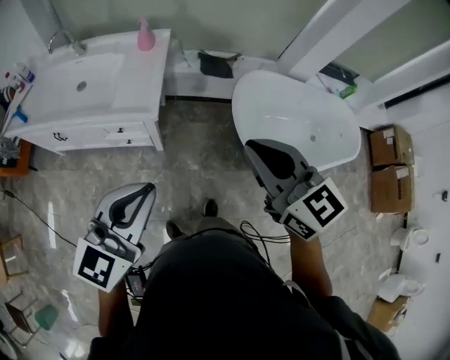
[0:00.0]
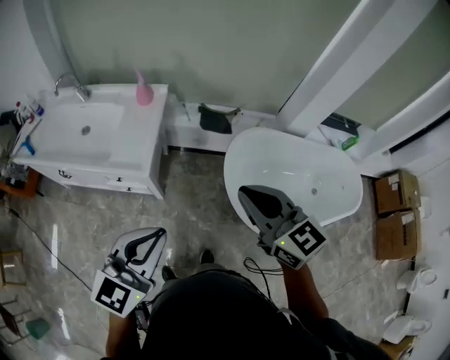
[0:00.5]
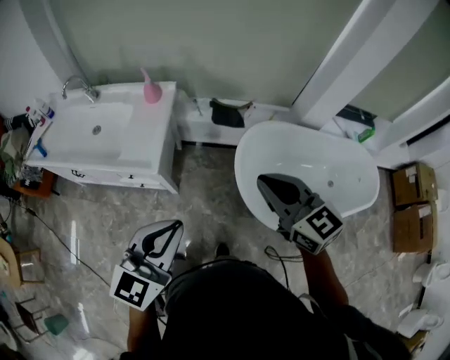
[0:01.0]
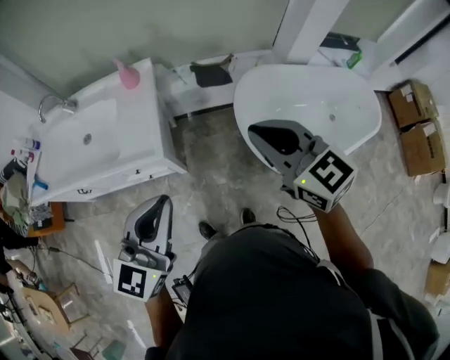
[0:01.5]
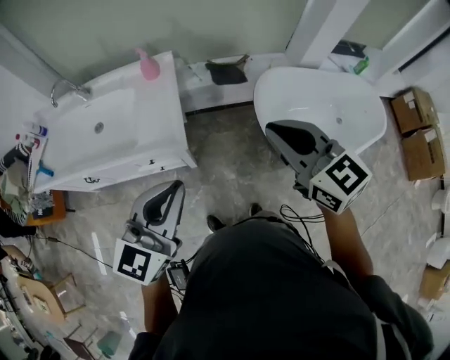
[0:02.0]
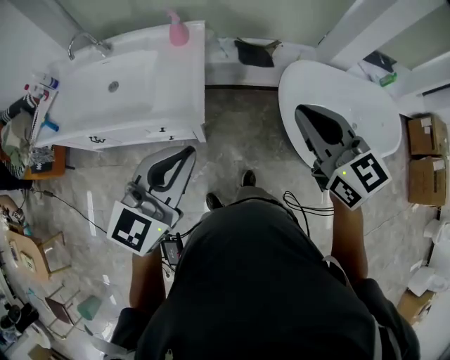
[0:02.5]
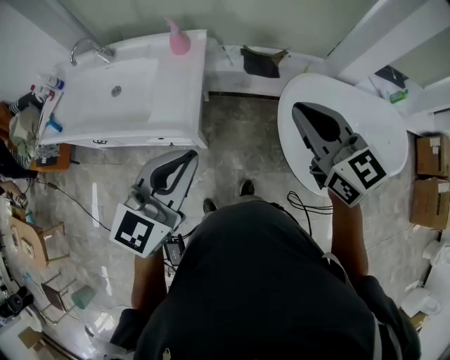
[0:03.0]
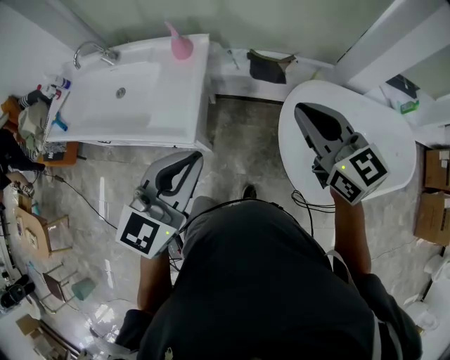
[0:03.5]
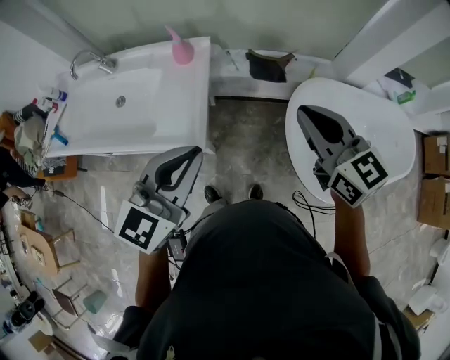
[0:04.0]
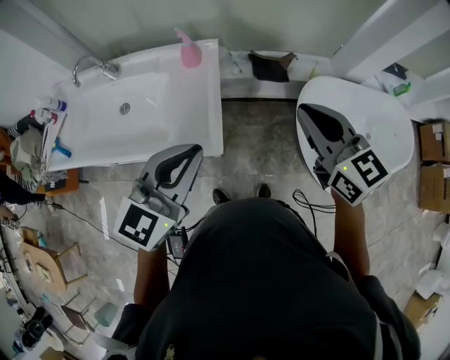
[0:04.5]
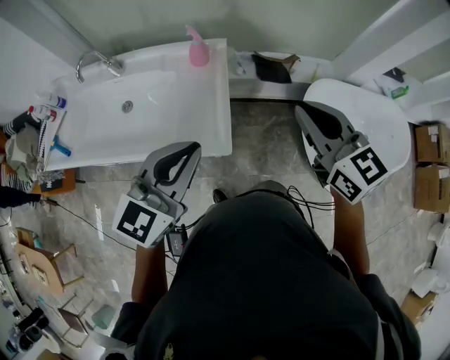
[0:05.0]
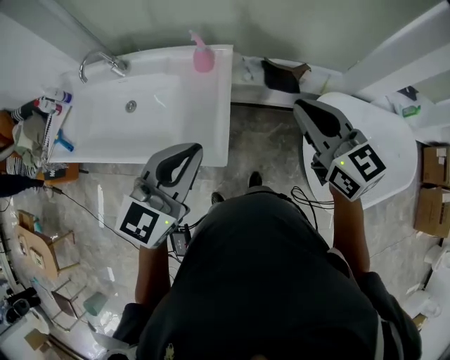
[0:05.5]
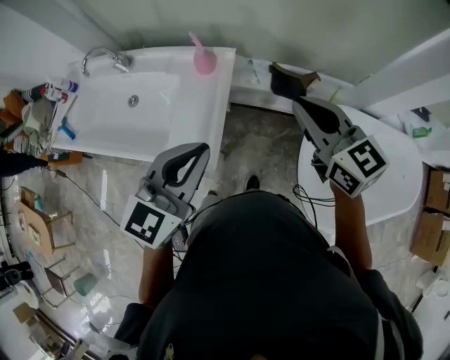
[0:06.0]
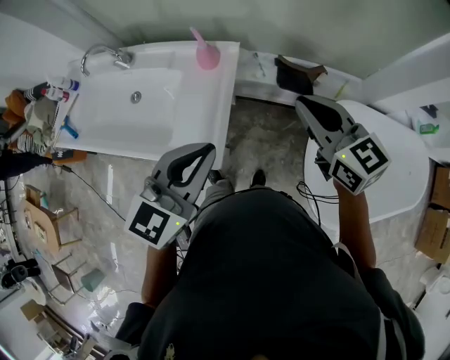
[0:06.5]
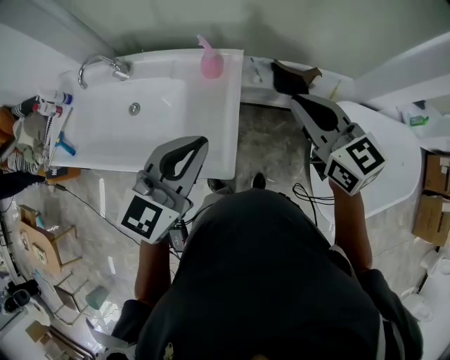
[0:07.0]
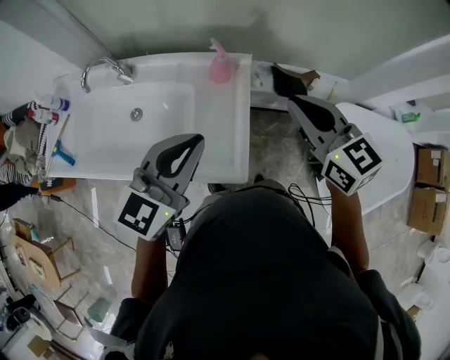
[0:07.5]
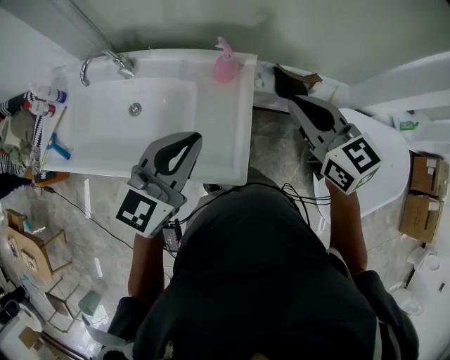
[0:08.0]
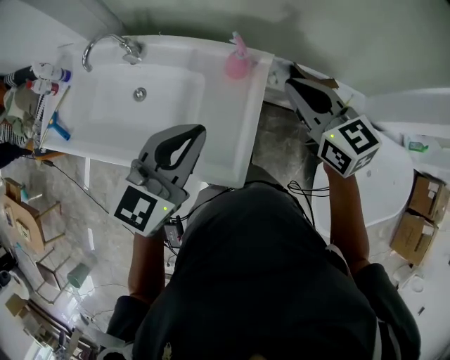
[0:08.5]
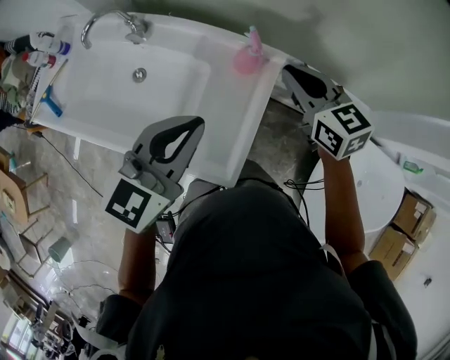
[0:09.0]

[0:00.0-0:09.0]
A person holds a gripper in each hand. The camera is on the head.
0:00.0 to 0:02.0: The two grippers go some 10 cm forward. The right gripper travels to the right and back again, roughly 10 cm each way. The left gripper goes to the right and returns, roughly 10 cm each way.
0:02.0 to 0:04.5: The grippers both shift forward by roughly 15 cm.
0:04.5 to 0:07.0: The two grippers go approximately 15 cm forward.
0:07.0 to 0:09.0: The right gripper moves forward, to the left and downward, approximately 25 cm; the left gripper is displaced forward, to the left and downward by roughly 15 cm.

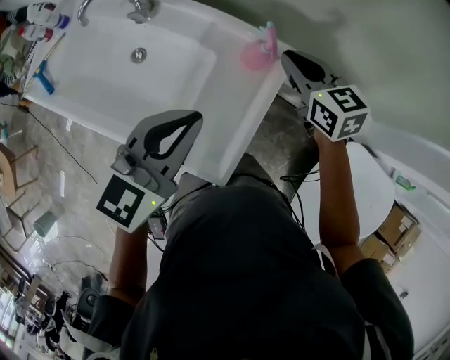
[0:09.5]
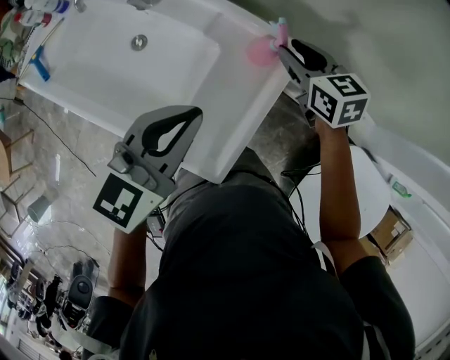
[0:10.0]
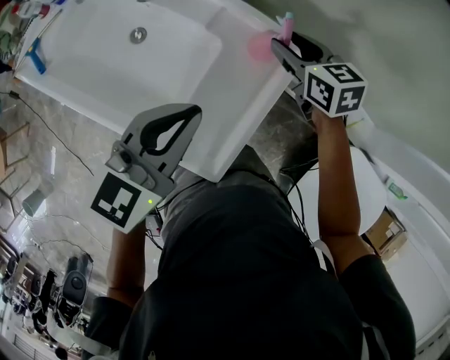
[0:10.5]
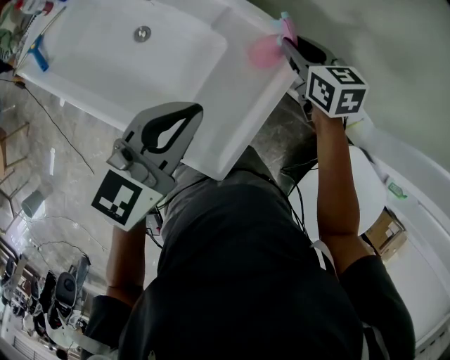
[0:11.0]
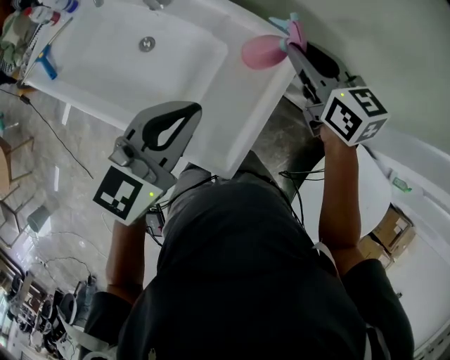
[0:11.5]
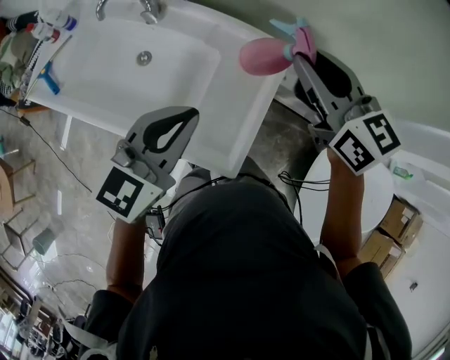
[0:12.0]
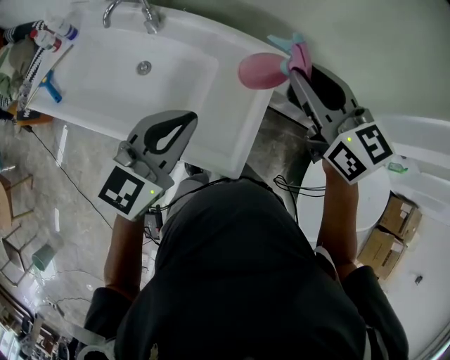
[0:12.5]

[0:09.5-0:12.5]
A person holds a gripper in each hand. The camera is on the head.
0:09.5 to 0:11.0: The right gripper goes approximately 5 cm downward, and opens, then closes again.
0:11.0 to 0:12.5: The left gripper moves backward and upward, roughly 10 cm. Meanwhile the right gripper travels upward and backward by roughly 30 cm, and swivels about 20 degrees.

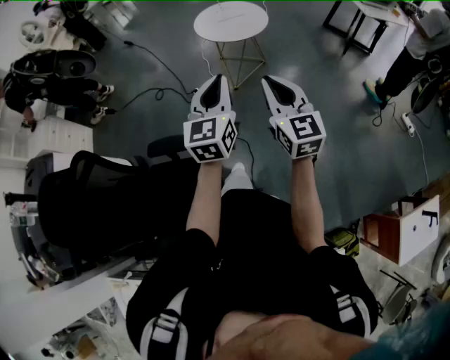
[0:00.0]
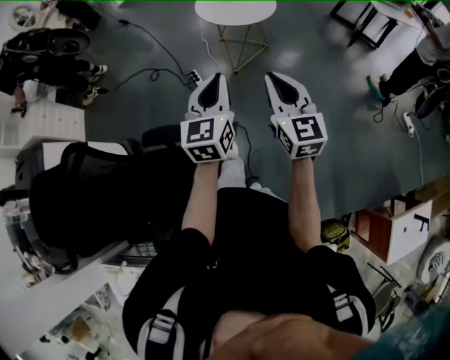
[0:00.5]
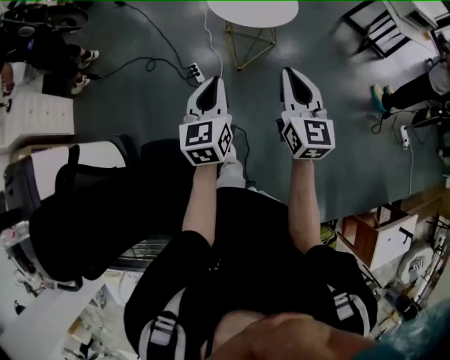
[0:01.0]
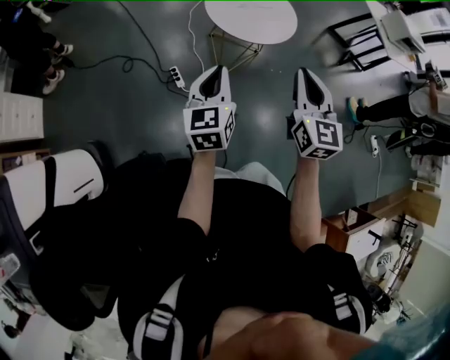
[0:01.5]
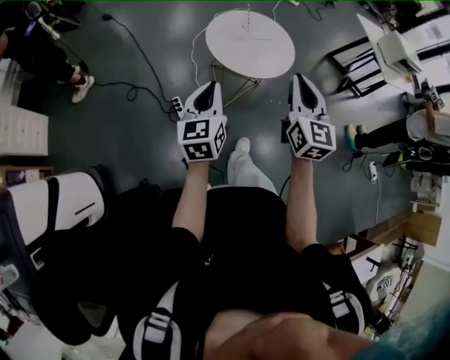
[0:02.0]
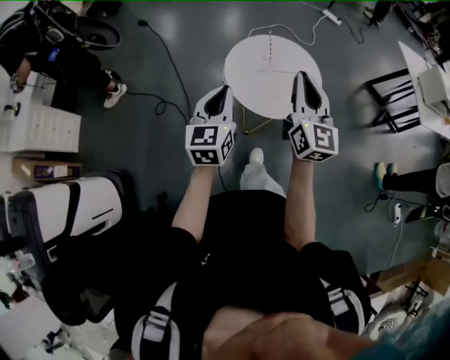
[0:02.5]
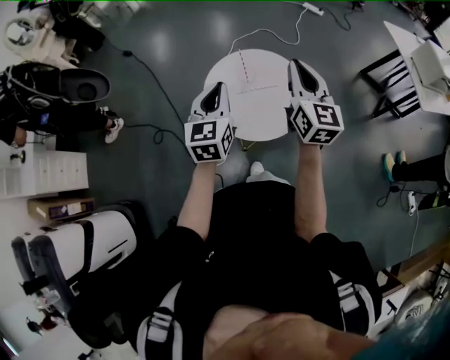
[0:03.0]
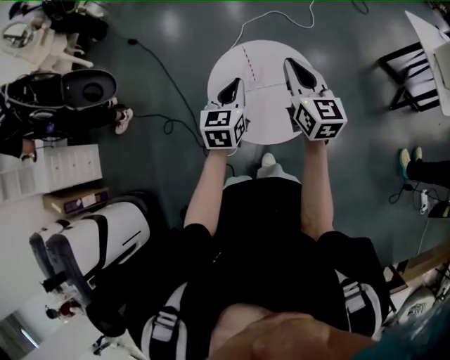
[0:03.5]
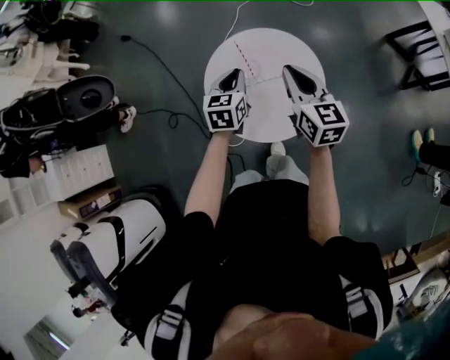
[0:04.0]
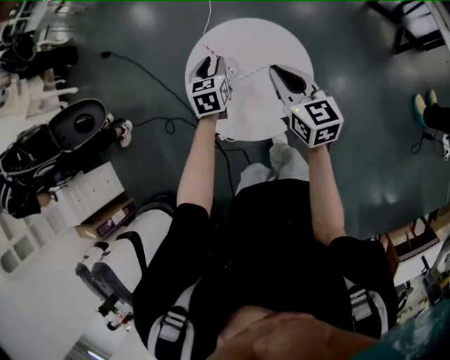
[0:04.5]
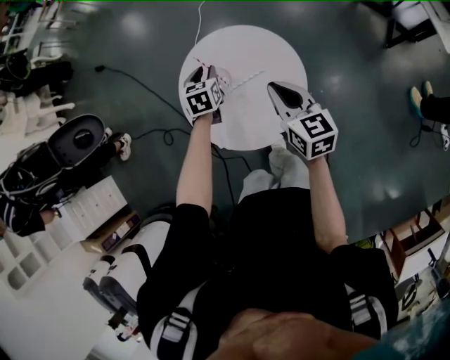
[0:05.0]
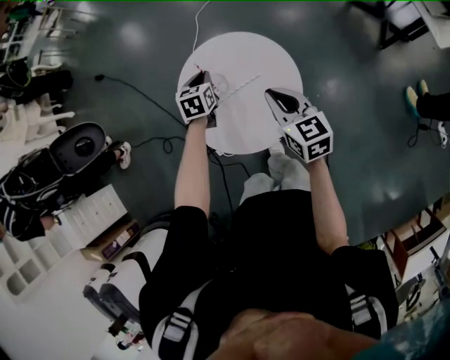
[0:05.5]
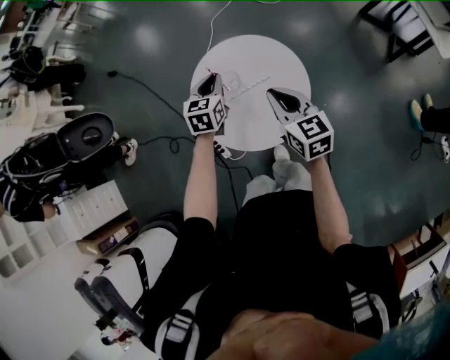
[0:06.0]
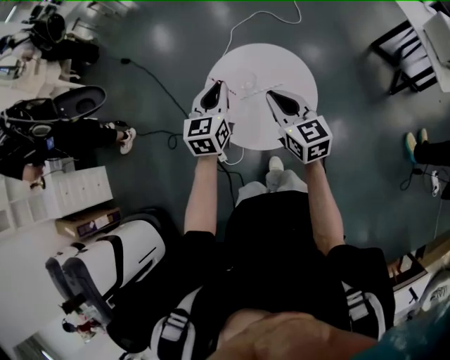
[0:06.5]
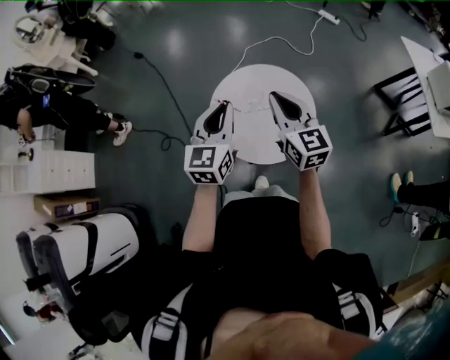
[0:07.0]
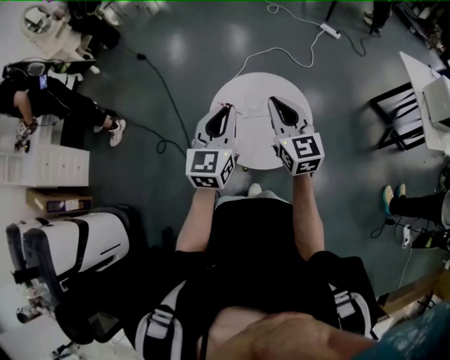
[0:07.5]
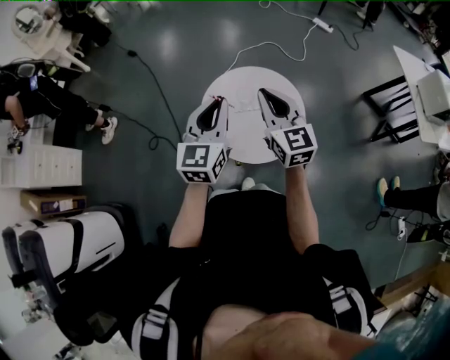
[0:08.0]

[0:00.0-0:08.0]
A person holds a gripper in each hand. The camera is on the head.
0:00.0 to 0:02.0: Both grippers are carried forward, some 40 cm.
0:02.0 to 0:04.0: The two grippers travel together, forward, roughly 50 cm. The left gripper turns by approximately 30 degrees; the right gripper swivels about 30 degrees.
0:04.0 to 0:06.0: The left gripper travels downward and back again, about 10 cm each way, and opens, then closes once more, while the right gripper moves roughly 5 cm.
0:06.0 to 0:08.0: The left gripper goes roughly 25 cm upward and backward, and turns by about 30 degrees, while the right gripper shifts approximately 15 cm upward and to the left, and rotates roughly 20 degrees.

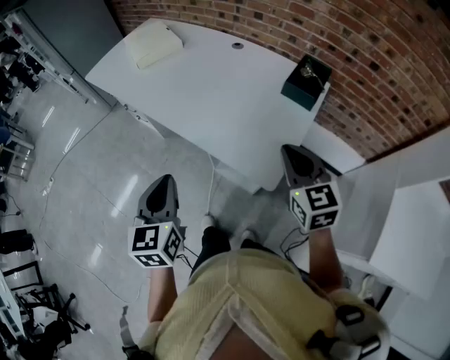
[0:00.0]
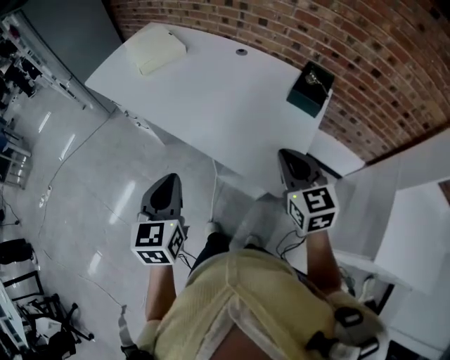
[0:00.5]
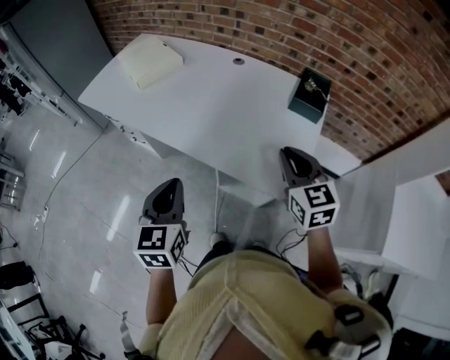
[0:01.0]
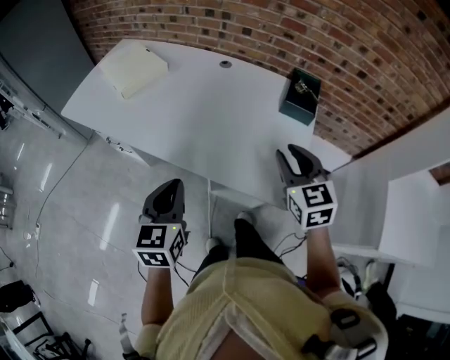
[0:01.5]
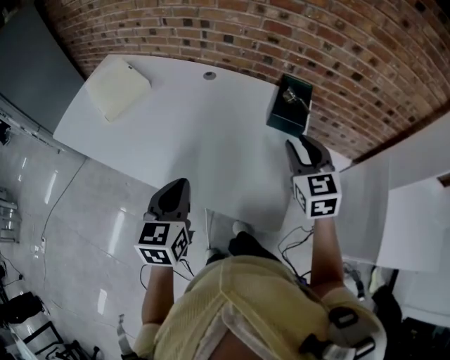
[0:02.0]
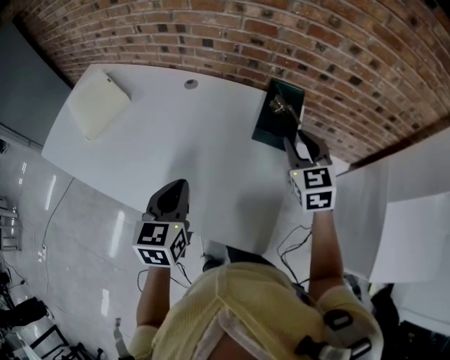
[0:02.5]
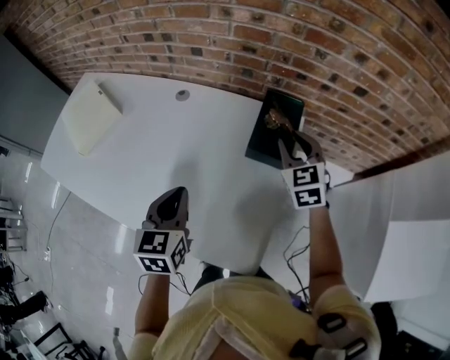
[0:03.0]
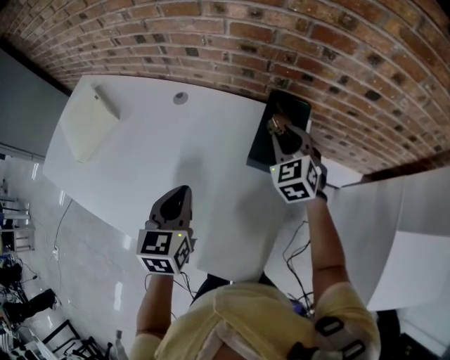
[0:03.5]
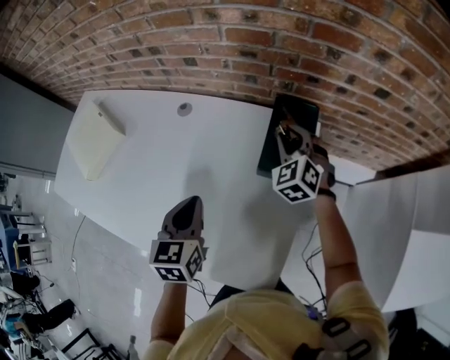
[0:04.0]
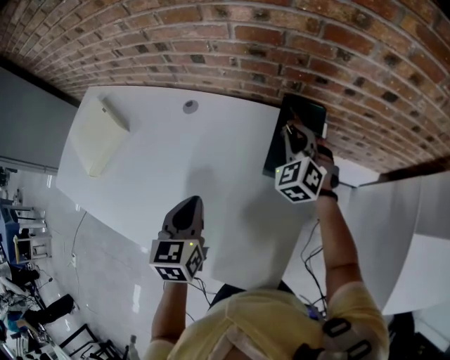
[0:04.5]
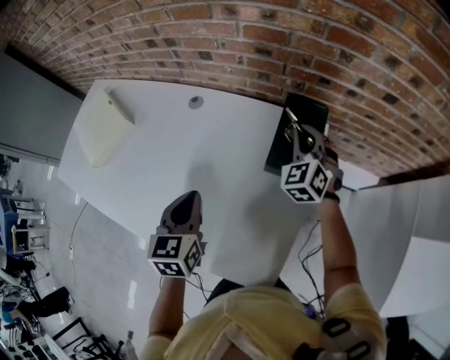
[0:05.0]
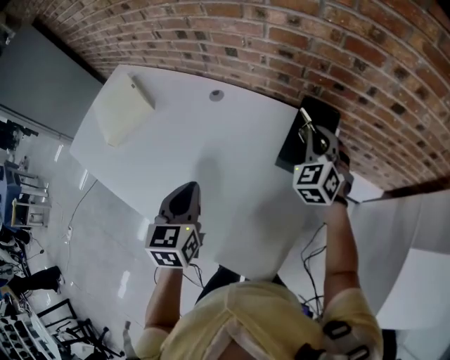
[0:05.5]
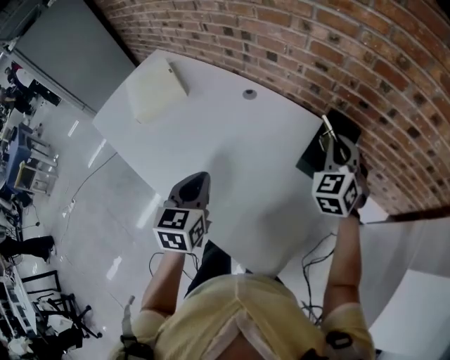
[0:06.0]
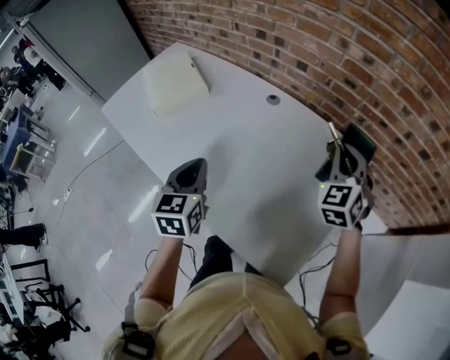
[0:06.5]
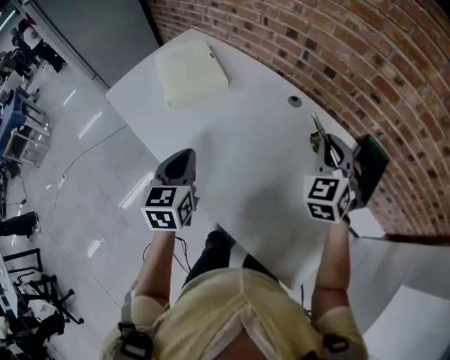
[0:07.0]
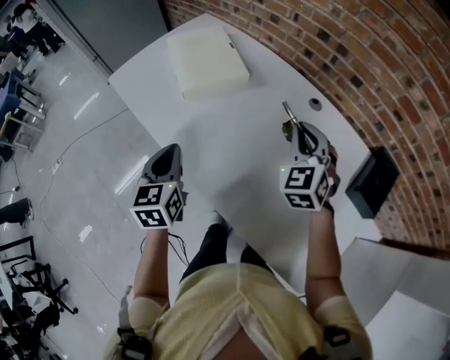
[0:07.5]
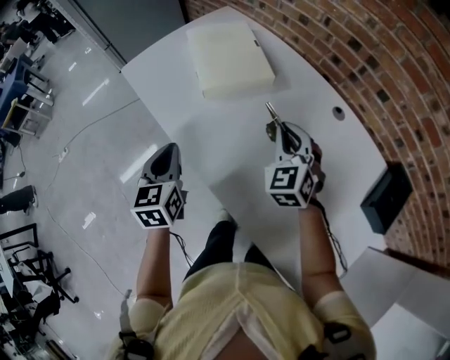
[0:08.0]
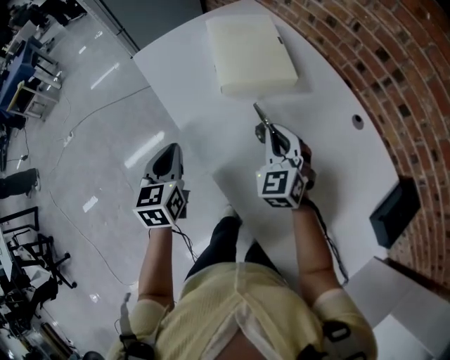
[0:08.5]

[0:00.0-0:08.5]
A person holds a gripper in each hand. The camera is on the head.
0:00.0 to 0:02.0: The two grippers go about 20 cm forward. The right gripper changes its angle by approximately 20 degrees, and opens up. The left gripper rotates roughly 20 degrees.
0:02.0 to 0:04.0: The left gripper travels forward and to the right by roughly 25 cm. The right gripper heads forward and downward, covering some 30 cm, and rotates approximately 30 degrees.
0:04.0 to 0:06.5: The right gripper shifts approximately 20 cm upward, to the left and backward, and closes its fingers. Meanwhile the left gripper heads to the left and backward, covering approximately 20 cm, and changes its angle by approximately 20 degrees.
0:06.5 to 0:08.5: The left gripper shifts by some 35 cm, and changes its angle by some 20 degrees; the right gripper ends up approximately 50 cm from where it was, and changes its angle by some 30 degrees.
